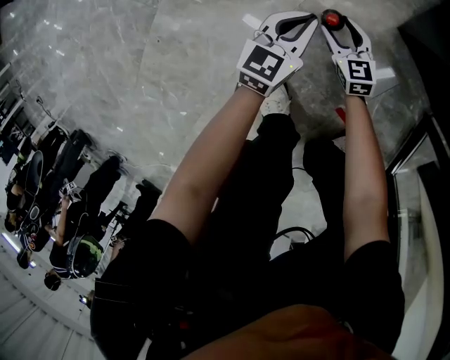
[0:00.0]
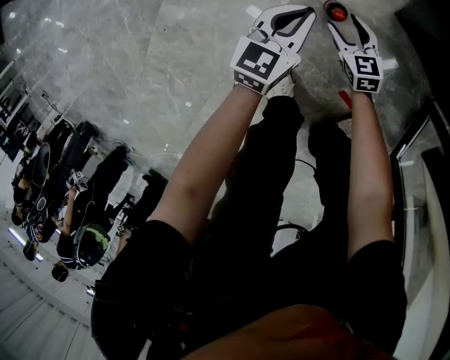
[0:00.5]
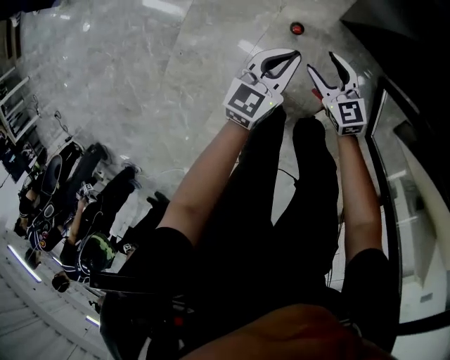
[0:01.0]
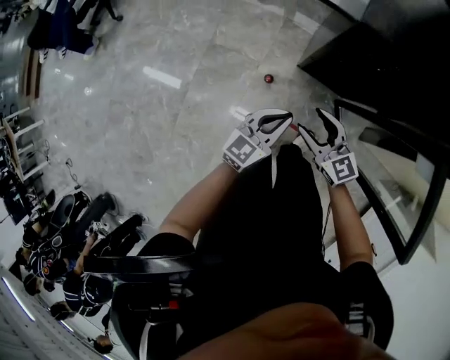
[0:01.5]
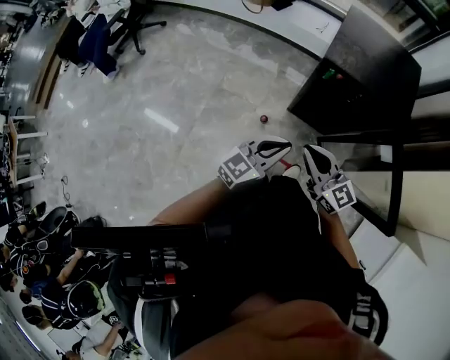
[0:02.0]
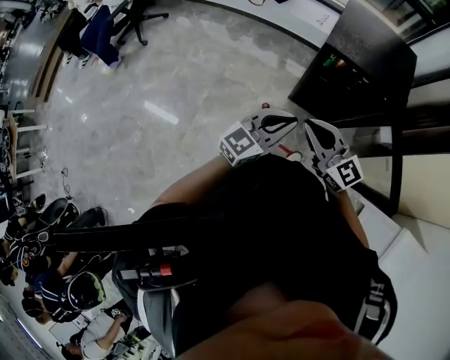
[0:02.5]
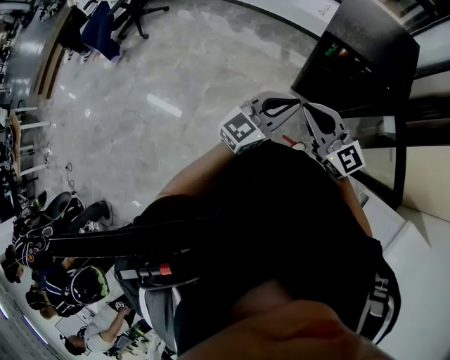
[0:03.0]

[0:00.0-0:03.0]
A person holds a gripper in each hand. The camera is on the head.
0:00.0 to 0:01.5: The grippers both shift upward by roughly 60 cm. The left gripper turns by some 30 degrees.
0:01.5 to 0:03.0: Both grippers move upward, about 30 cm. The right gripper closes.

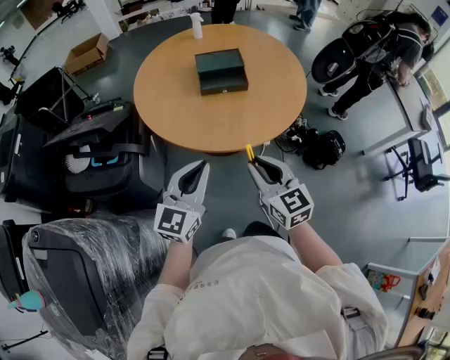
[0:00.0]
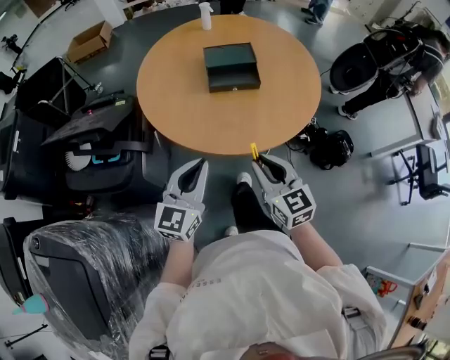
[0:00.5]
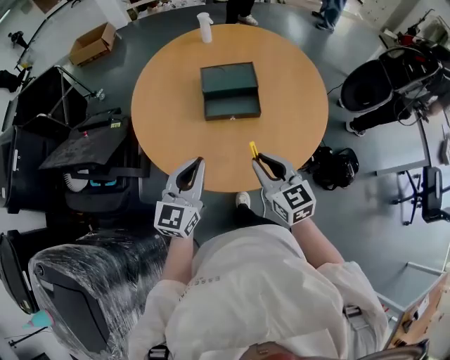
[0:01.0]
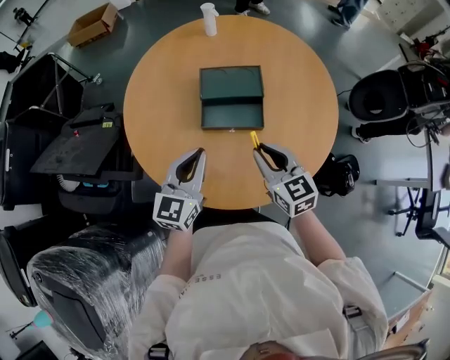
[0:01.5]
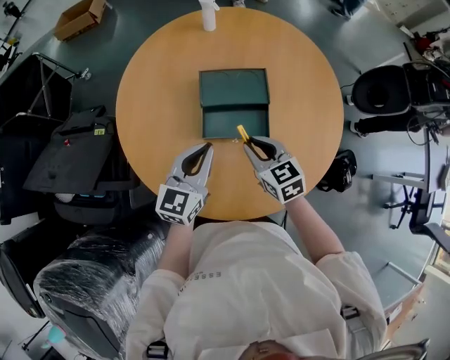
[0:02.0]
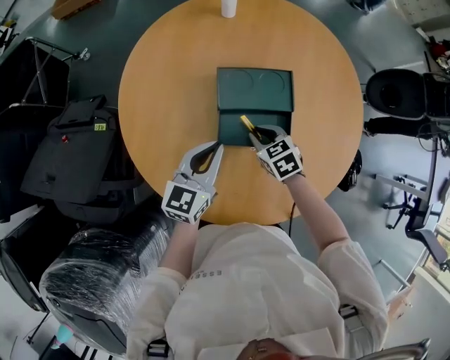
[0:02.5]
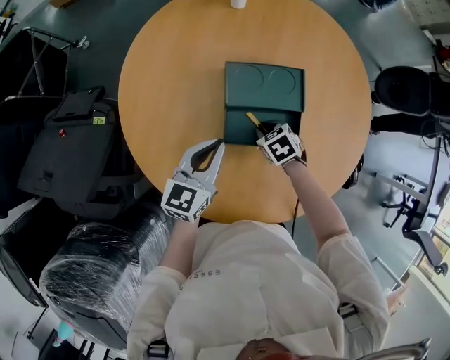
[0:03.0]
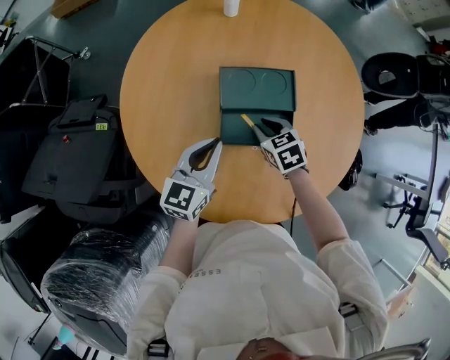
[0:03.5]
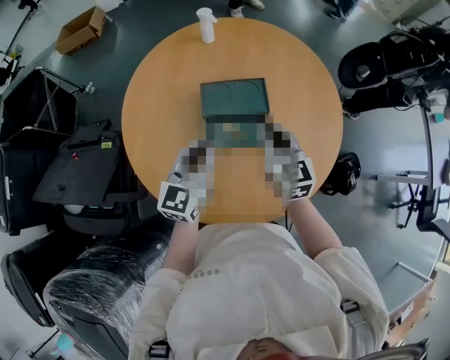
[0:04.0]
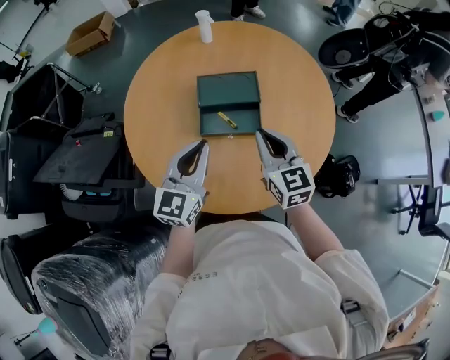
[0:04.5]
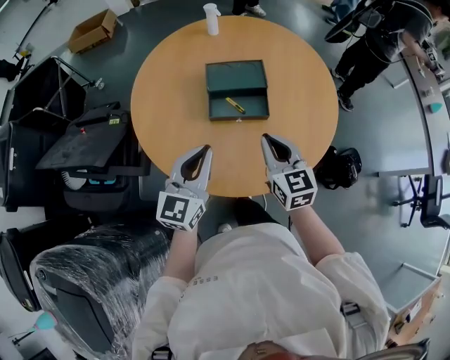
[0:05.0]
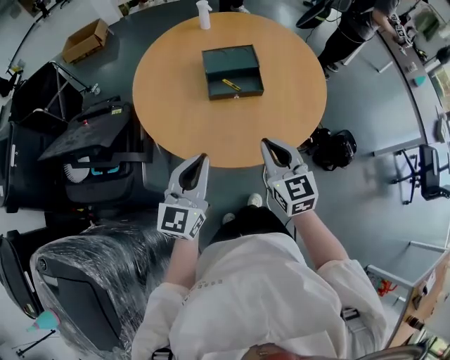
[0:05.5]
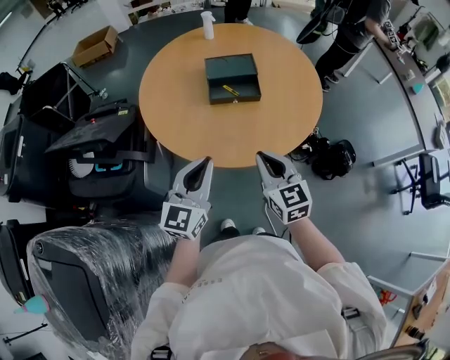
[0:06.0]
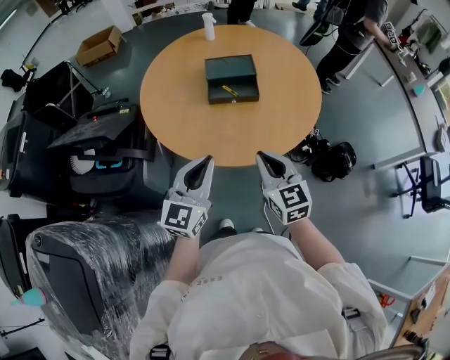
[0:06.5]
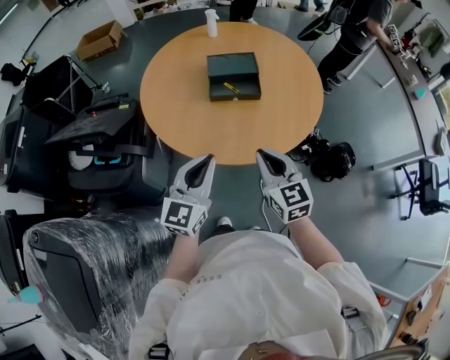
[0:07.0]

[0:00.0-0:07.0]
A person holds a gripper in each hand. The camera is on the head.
0:00.0 to 0:02.0: Both grippers travel together forward, some 40 cm. The right gripper changes its angle by about 20 degrees.
0:02.0 to 0:03.5: The left gripper travels forward by some 5 cm, while the right gripper is displaced downward and forward by approximately 15 cm, and turns by some 20 degrees.
0:03.5 to 0:05.0: The two grippers go some 25 cm backward and upward. The right gripper angles its fingers upward, by roughly 40 degrees, and closes its fingers.
0:05.0 to 0:07.0: The two grippers go some 20 cm backward.

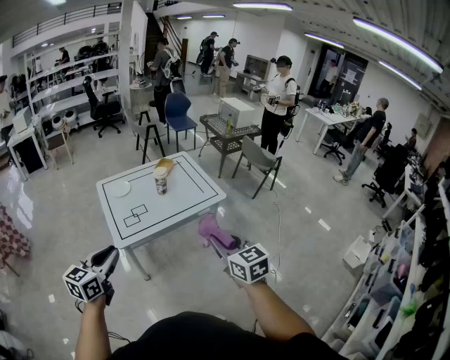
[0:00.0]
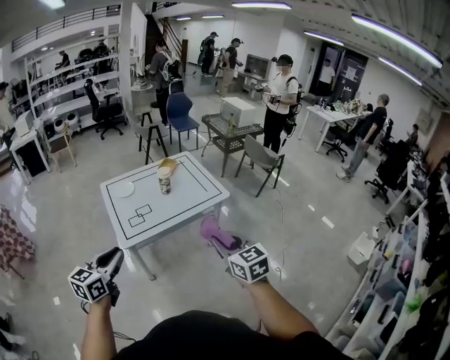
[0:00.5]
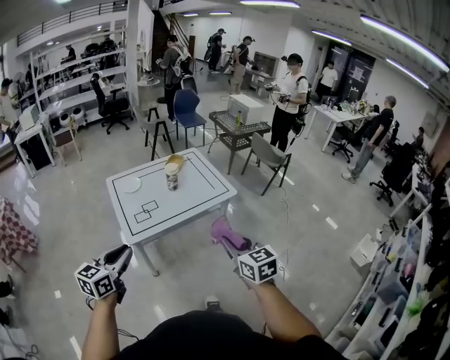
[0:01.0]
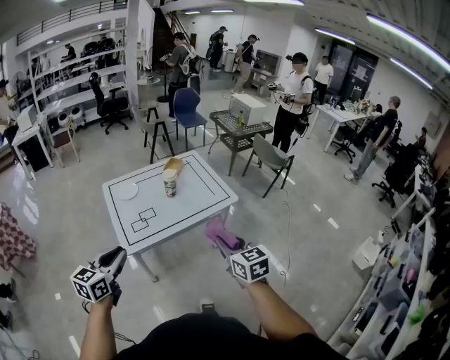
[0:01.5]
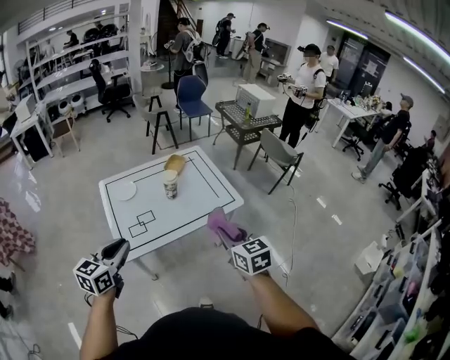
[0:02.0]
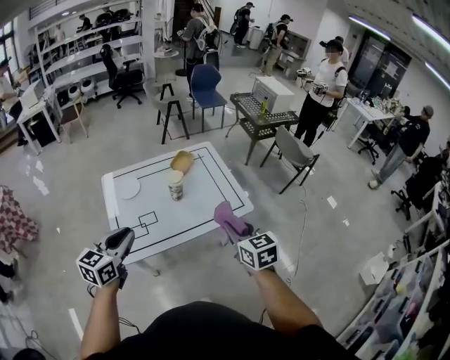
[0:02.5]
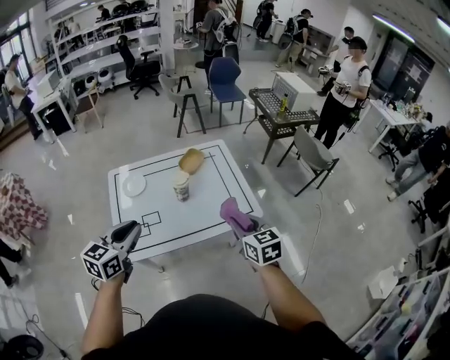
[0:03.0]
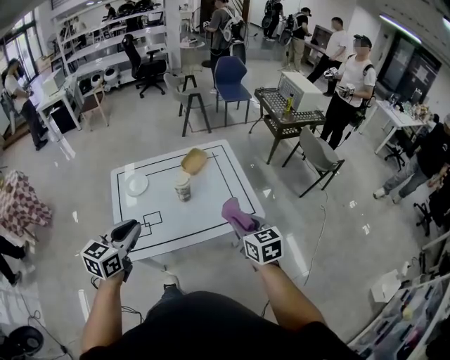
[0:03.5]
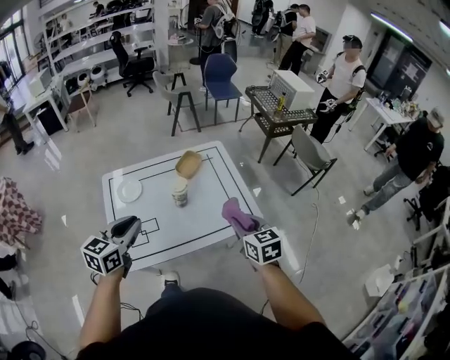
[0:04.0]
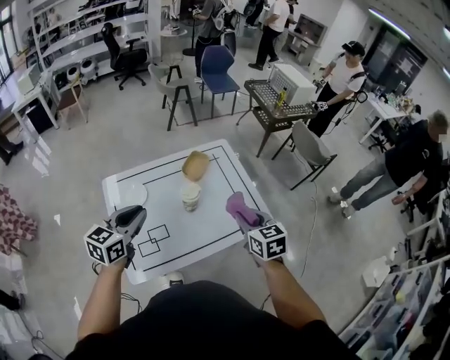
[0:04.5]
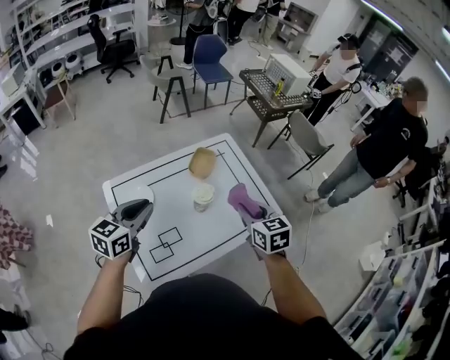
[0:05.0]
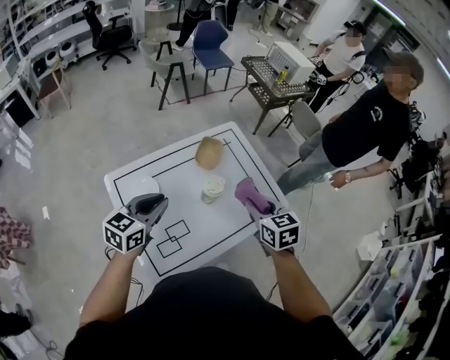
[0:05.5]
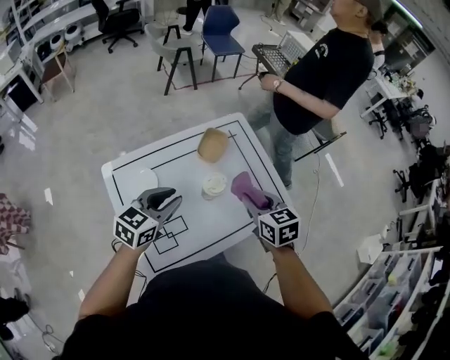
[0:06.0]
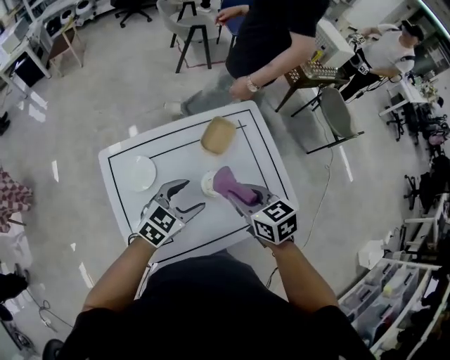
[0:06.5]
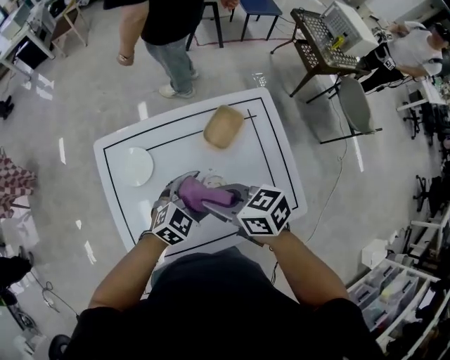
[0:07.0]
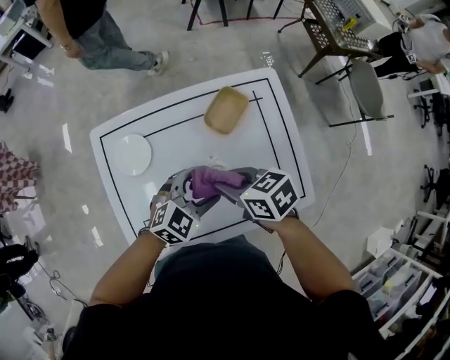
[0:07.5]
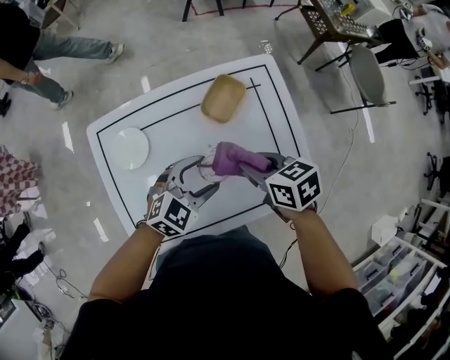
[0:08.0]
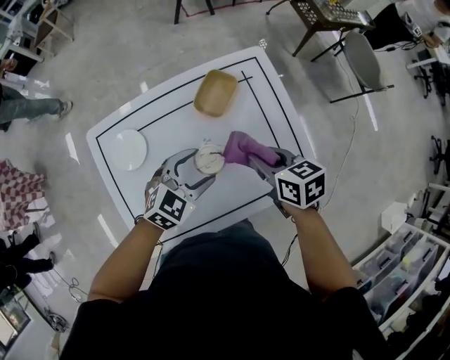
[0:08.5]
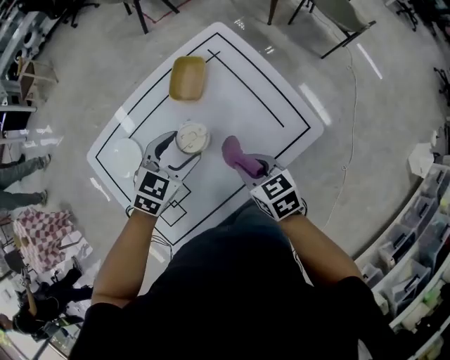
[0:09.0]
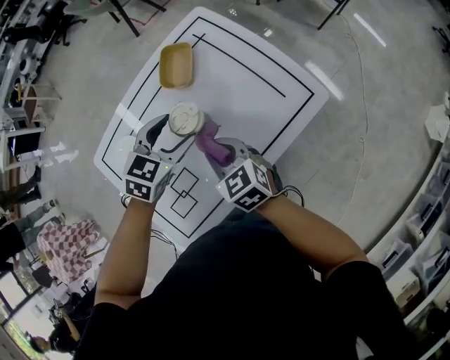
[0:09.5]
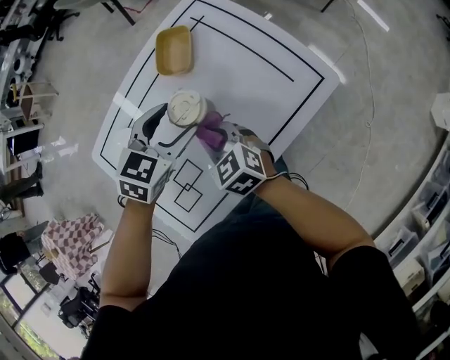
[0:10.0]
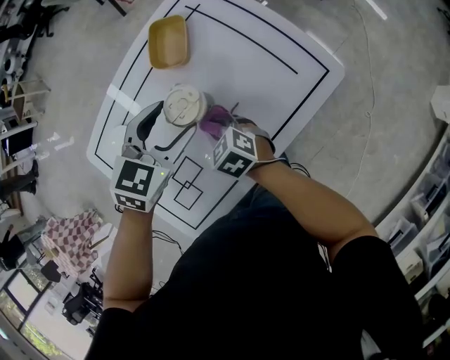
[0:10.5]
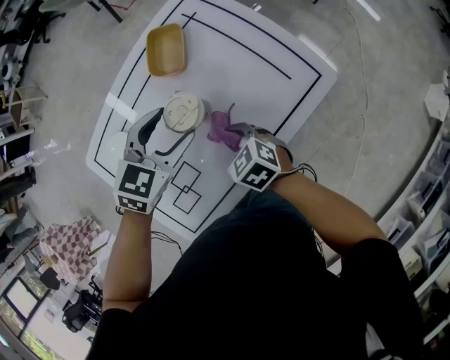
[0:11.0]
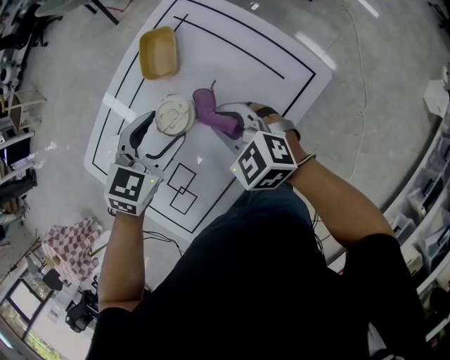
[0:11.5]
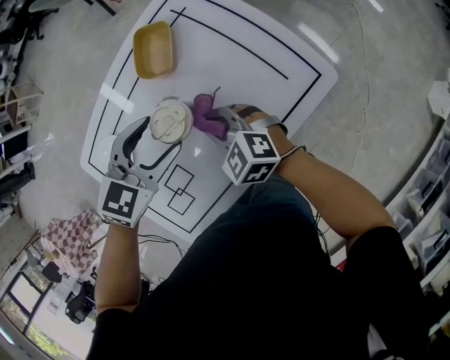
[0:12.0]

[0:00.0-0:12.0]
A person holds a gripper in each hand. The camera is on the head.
0:00.0 to 0:02.0: Both grippers move forward, about 20 cm.
0:02.0 to 0:04.0: The grippers both shift forward by about 25 cm.
0:04.0 to 0:06.0: The right gripper travels to the left and forward by roughly 25 cm; the left gripper heads forward, to the left and downward, covering approximately 25 cm, and changes its angle by approximately 20 degrees.
0:06.0 to 0:08.0: Both grippers move downward, some 15 cm. The right gripper swivels approximately 30 degrees, while the left gripper changes its angle by approximately 20 degrees, and opens its fingers.
0:08.0 to 0:10.0: The right gripper goes roughly 15 cm backward, downward and to the left, and rotates approximately 30 degrees.
0:10.0 to 0:12.0: The right gripper goes up and down, roughly 10 cm each way, reversing 2 times, and changes its angle by about 20 degrees.

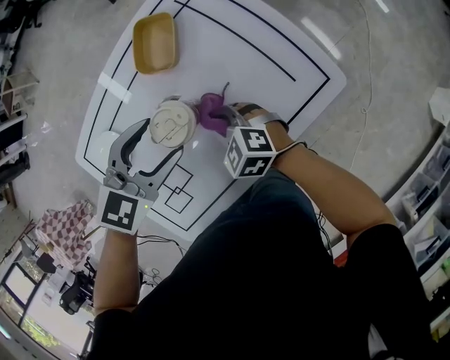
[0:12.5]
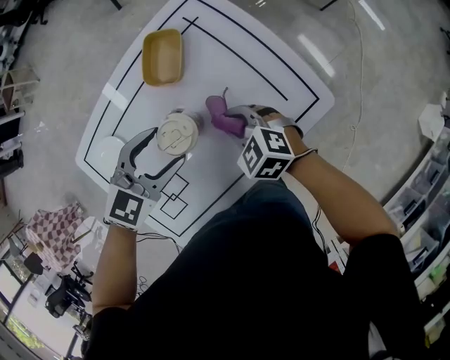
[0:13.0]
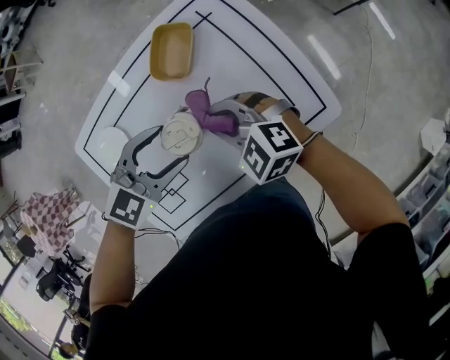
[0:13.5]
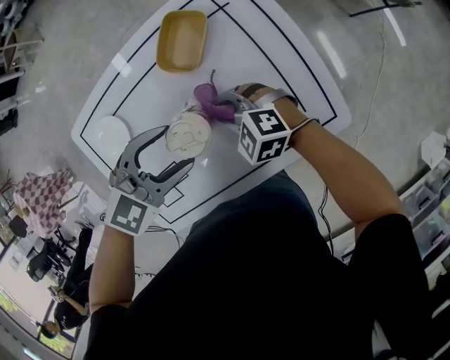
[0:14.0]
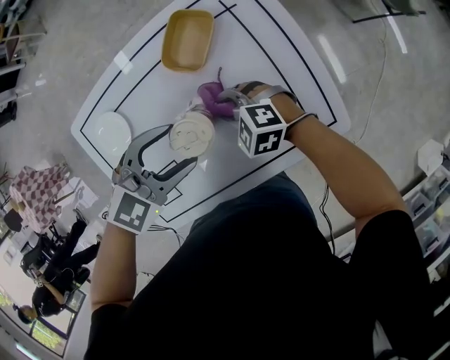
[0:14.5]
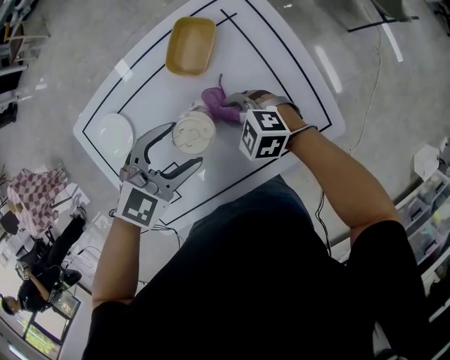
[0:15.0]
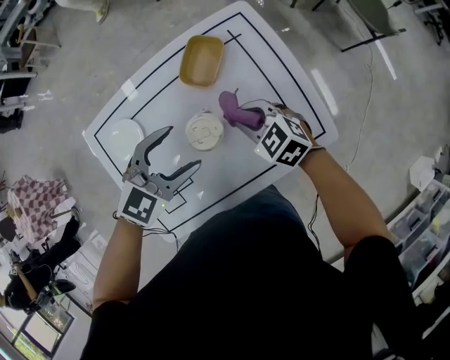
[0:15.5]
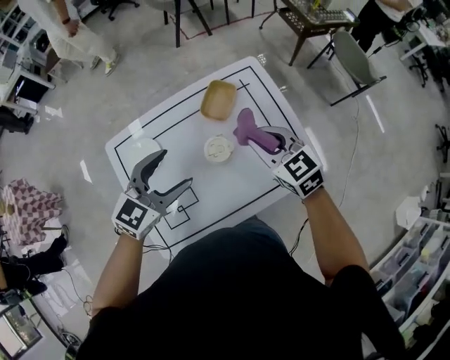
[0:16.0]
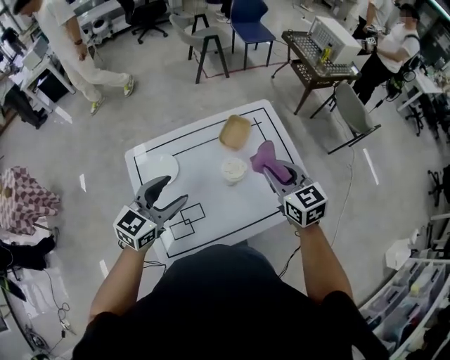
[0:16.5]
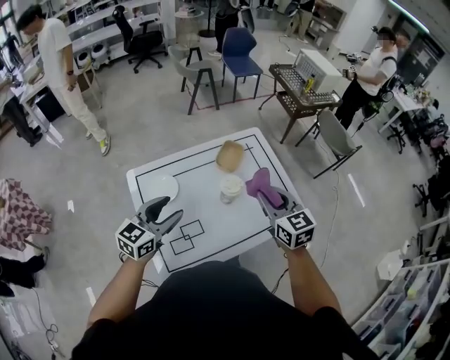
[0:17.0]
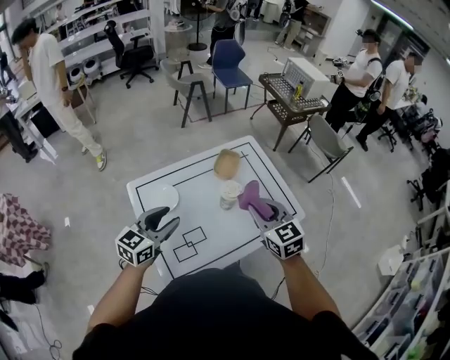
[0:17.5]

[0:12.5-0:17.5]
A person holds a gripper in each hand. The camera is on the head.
0:12.5 to 0:15.0: The right gripper goes upward and returns, approximately 10 cm each way, and turns by some 20 degrees.
0:15.0 to 0:17.5: The left gripper changes place by roughly 30 cm, turns by approximately 40 degrees, and closes. Meanwhile the right gripper shifts some 35 cm upward, and changes its angle by approximately 50 degrees.
